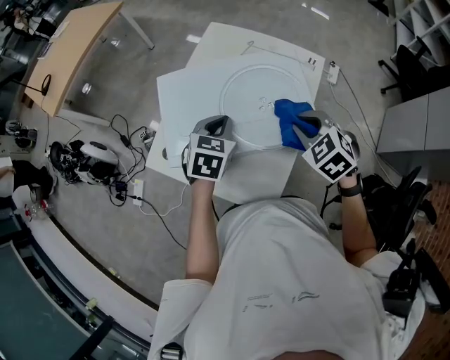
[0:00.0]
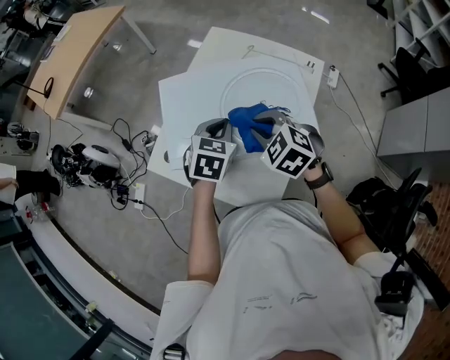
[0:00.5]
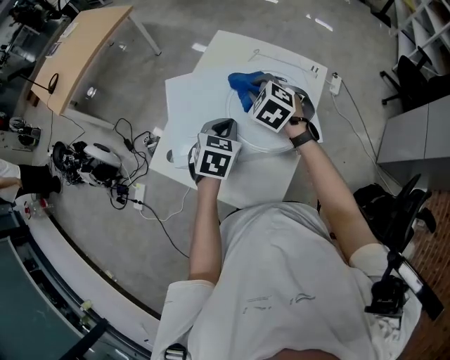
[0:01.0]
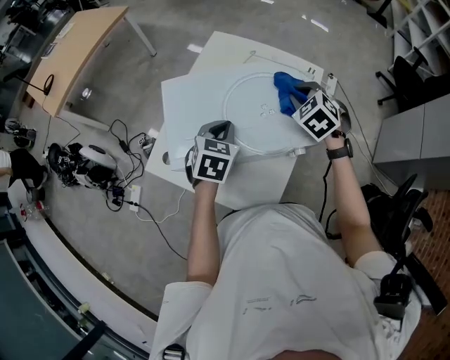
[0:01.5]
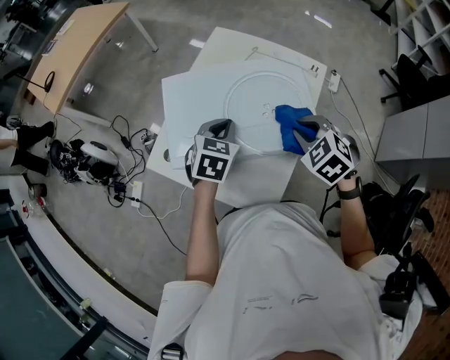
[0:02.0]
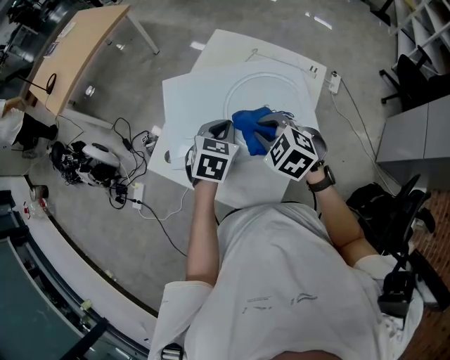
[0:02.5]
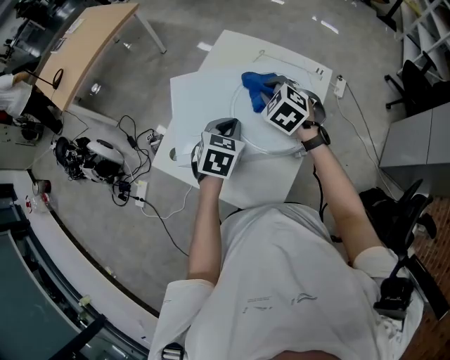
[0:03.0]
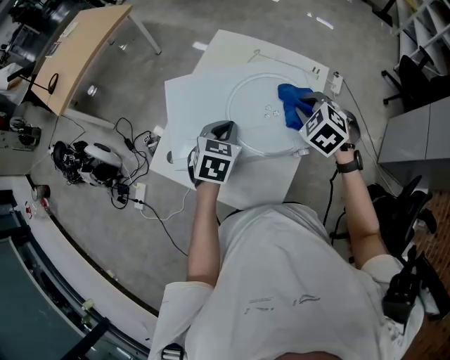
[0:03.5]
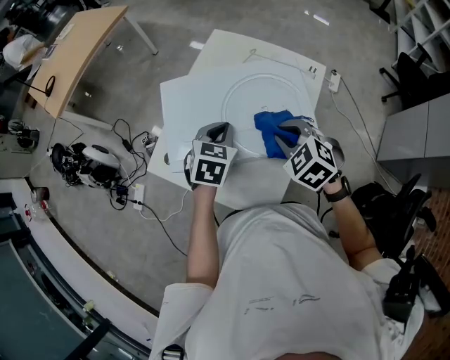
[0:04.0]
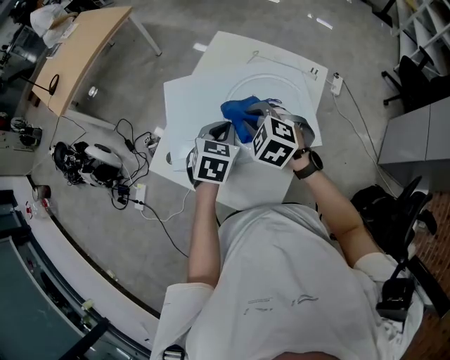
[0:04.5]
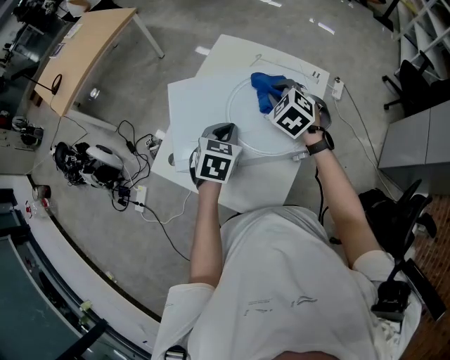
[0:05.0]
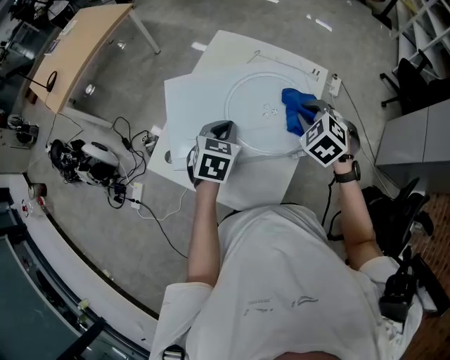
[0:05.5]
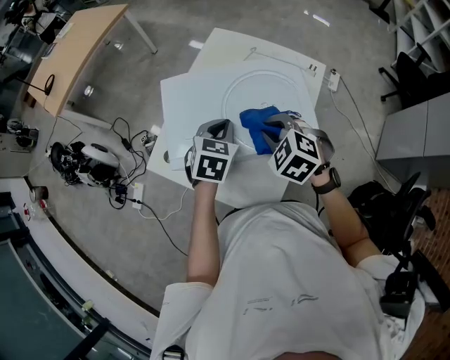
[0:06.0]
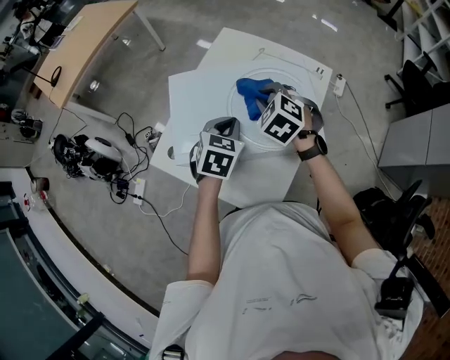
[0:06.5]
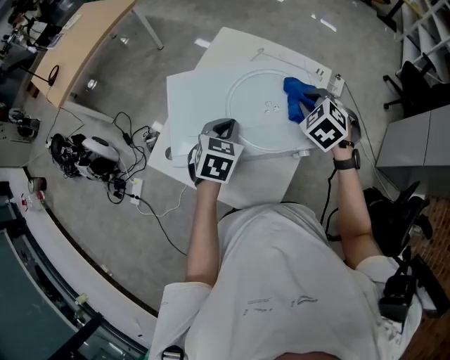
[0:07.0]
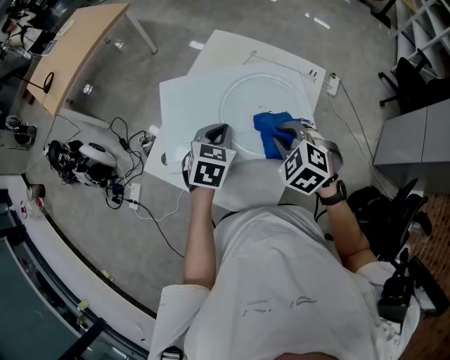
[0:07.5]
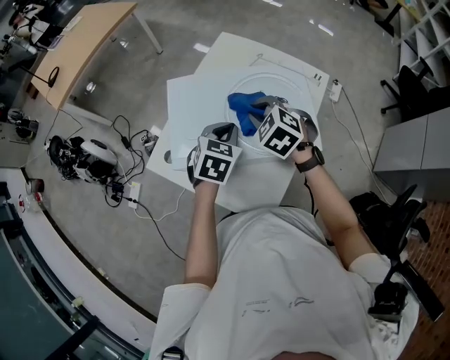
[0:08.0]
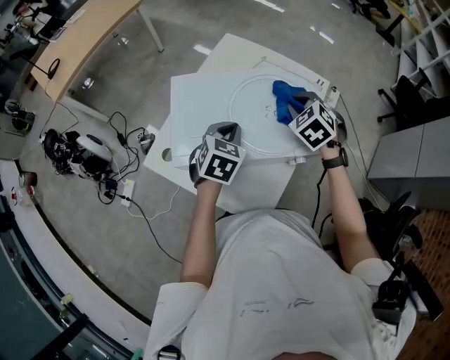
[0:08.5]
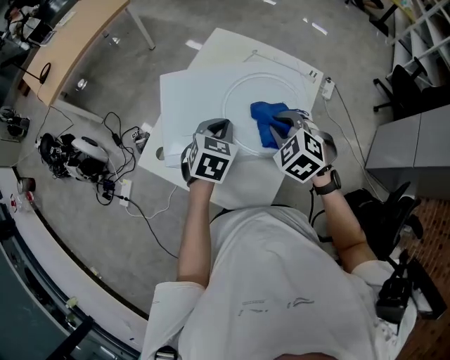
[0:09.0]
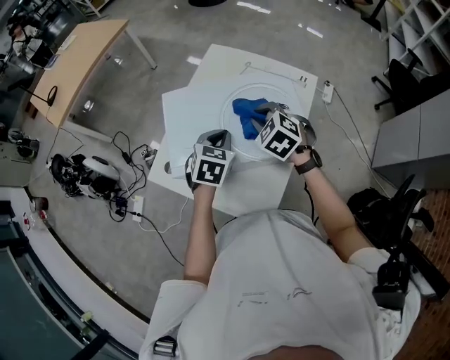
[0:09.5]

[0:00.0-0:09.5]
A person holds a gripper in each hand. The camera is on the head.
0:00.0 to 0:02.0: The right gripper goes to the left and returns, about 10 cm each way.
0:02.0 to 0:04.0: The right gripper travels forward and back again, roughly 10 cm each way.
0:04.0 to 0:05.5: The right gripper moves to the right and forward, about 10 cm.
0:05.5 to 0:07.5: The right gripper goes left and right, roughly 10 cm each way, reversing 2 times.
0:07.5 to 0:09.5: The right gripper moves forward and backward over some 10 cm, changing direction 2 times.

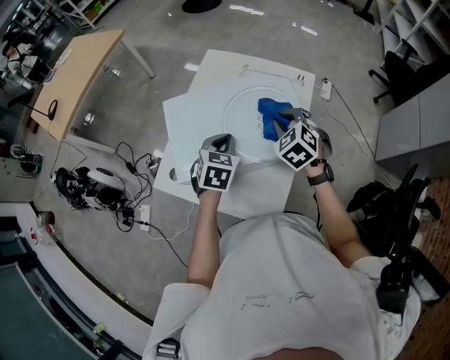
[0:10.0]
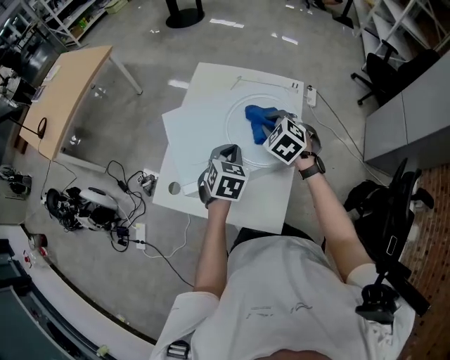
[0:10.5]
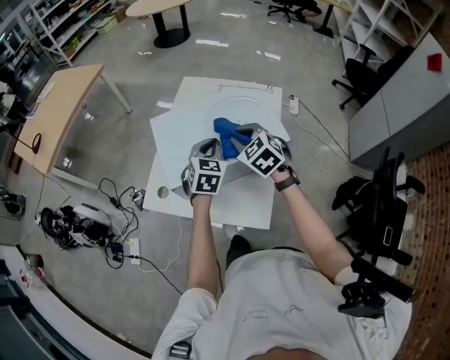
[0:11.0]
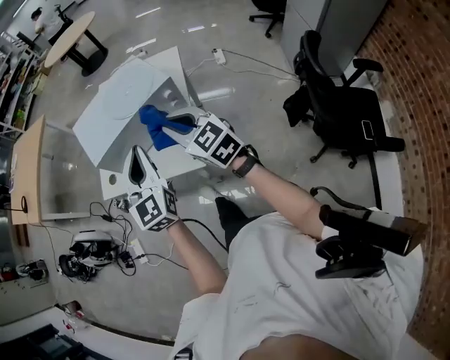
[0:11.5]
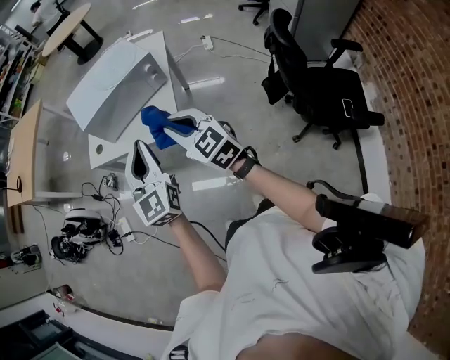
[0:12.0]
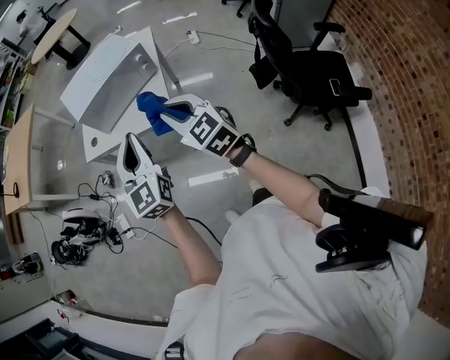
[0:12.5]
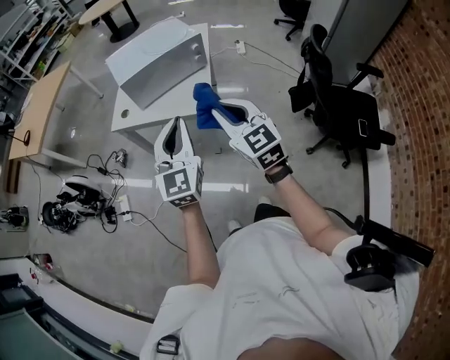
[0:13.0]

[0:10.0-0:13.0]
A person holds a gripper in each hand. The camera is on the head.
0:10.0 to 0:11.5: The left gripper shifts approximately 30 cm backward and upward, and points its fingers about 40 degrees further upward. Meanwhile the right gripper travels backward by approximately 30 cm, and tips its fingers upward by approximately 40 degrees.
0:11.5 to 0:13.0: The two grippers go about 25 cm backward.

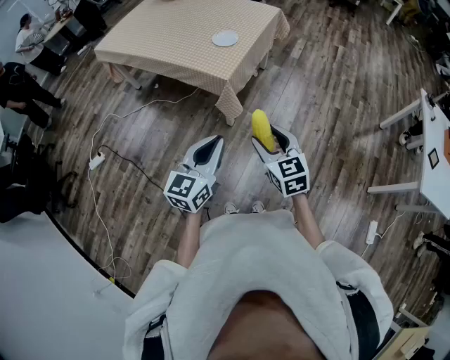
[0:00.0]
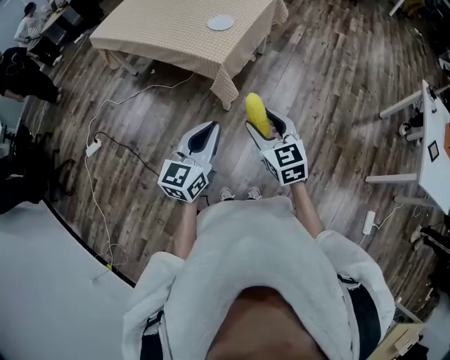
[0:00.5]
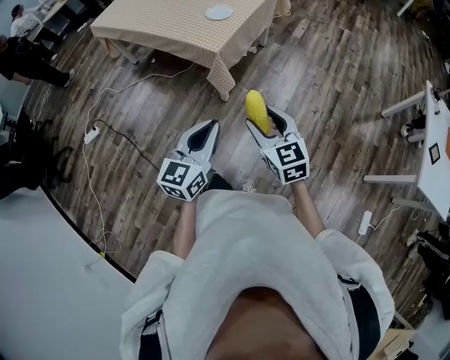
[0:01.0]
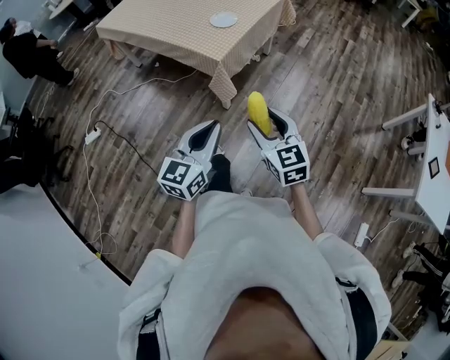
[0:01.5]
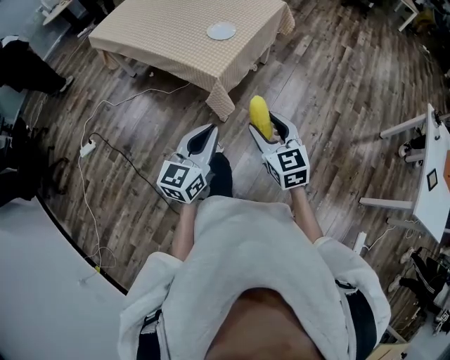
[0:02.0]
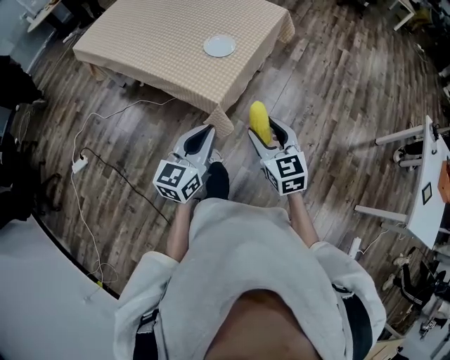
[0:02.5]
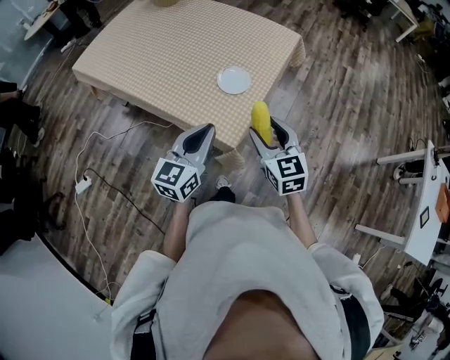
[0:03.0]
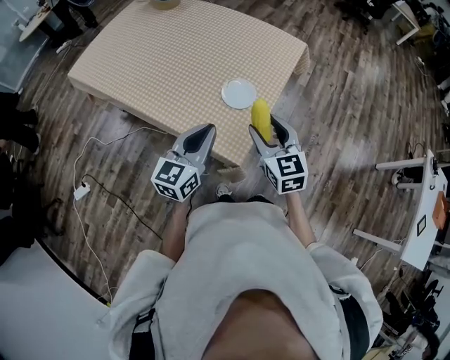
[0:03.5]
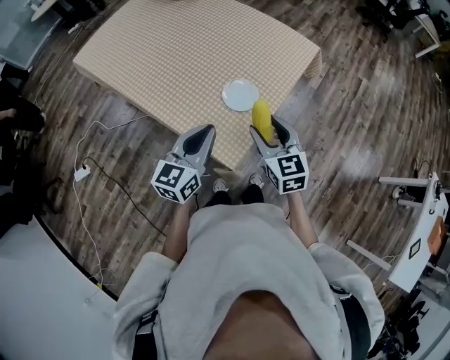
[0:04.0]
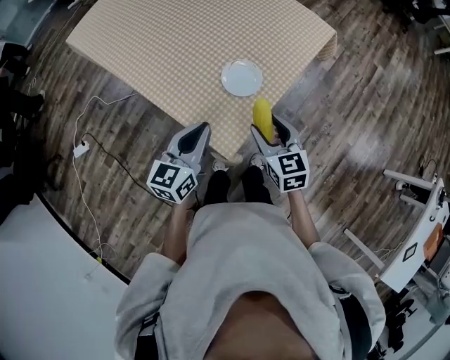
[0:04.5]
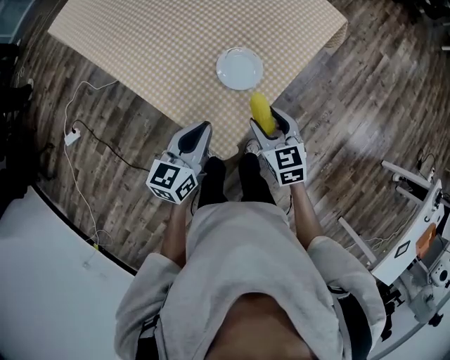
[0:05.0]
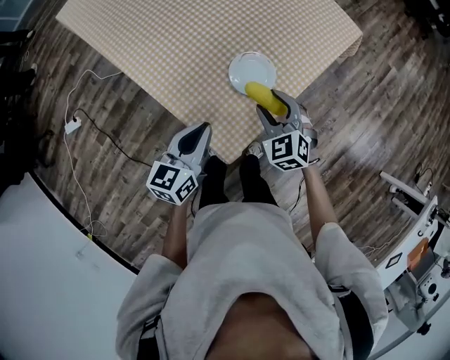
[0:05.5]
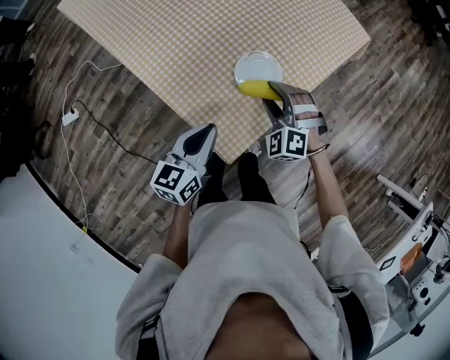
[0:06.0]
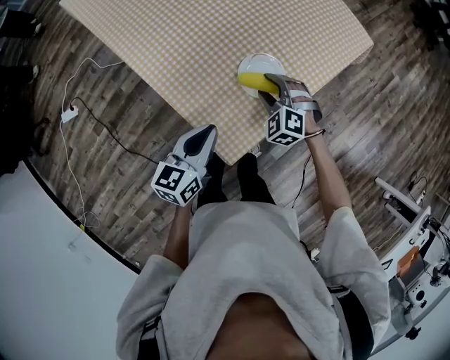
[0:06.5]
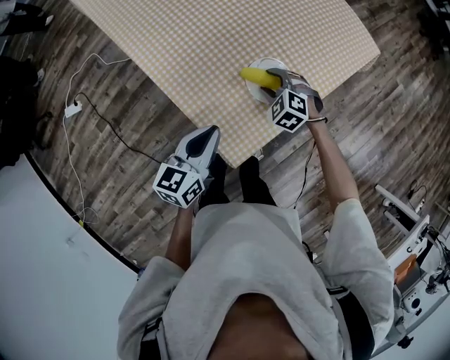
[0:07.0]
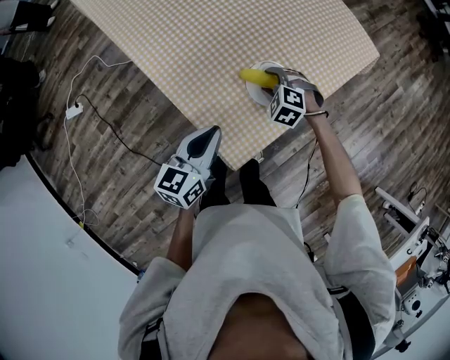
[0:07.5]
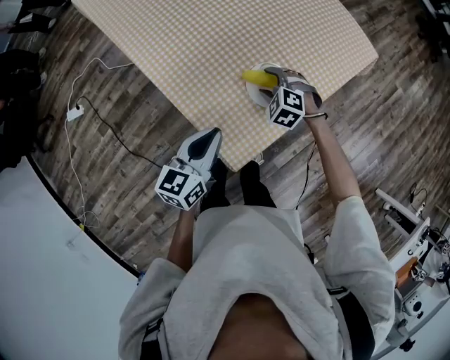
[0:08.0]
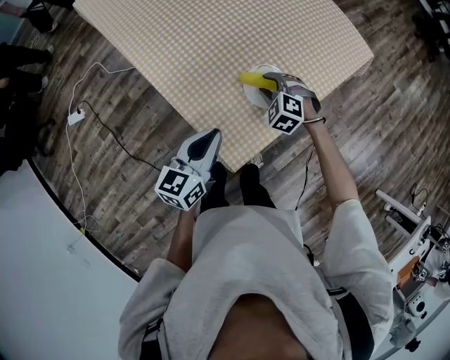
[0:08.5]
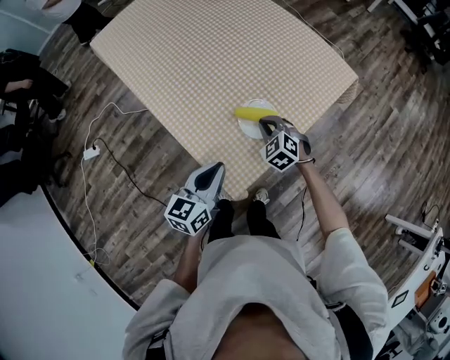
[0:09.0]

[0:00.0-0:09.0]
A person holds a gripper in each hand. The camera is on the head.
0:00.0 to 0:02.0: The left gripper is displaced forward by about 10 cm. Meanwhile the right gripper travels forward and to the right by about 10 cm.
0:02.0 to 0:04.5: The two grippers travel together, forward, roughly 50 cm.
0:04.5 to 0:07.0: The right gripper travels forward and downward by about 25 cm, and rolls counterclockwise, seen from behind, by roughly 60 degrees; the left gripper shifts about 10 cm downward.
0:07.0 to 0:09.0: The left gripper moves some 5 cm. The right gripper heads upward, covering about 5 cm, and closes up.

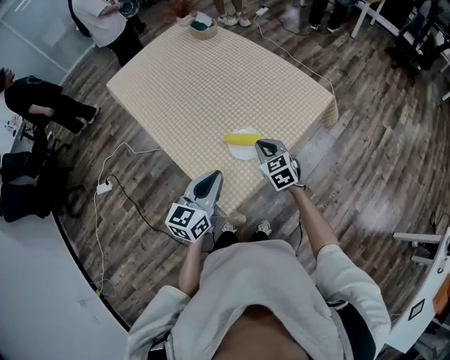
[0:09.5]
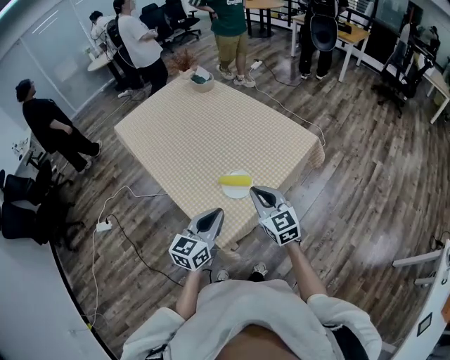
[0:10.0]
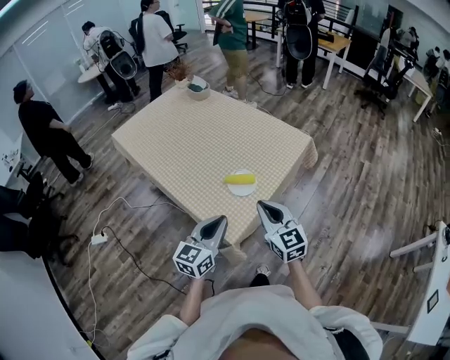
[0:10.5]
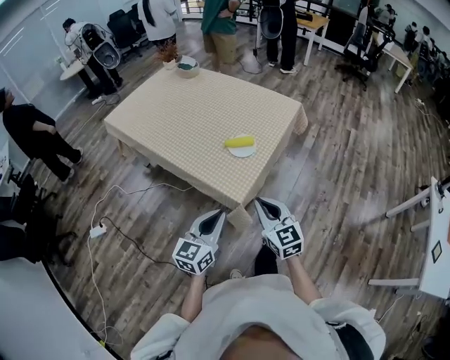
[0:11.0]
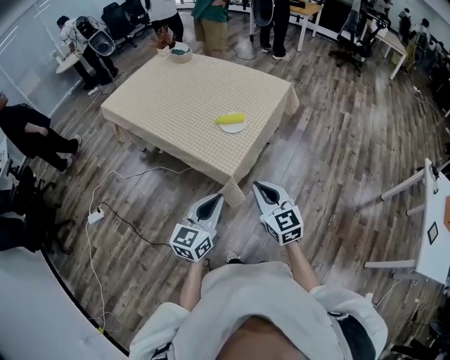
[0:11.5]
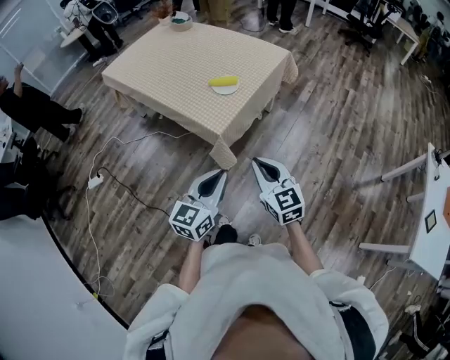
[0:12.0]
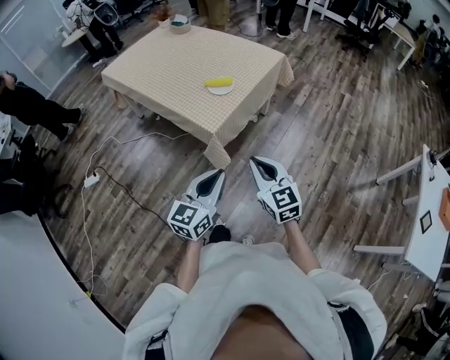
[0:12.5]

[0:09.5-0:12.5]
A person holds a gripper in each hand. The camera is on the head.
0:09.5 to 0:11.0: The two grippers go approximately 30 cm backward. The right gripper turns by about 30 degrees.
0:11.0 to 0:12.5: The two grippers go approximately 20 cm backward and to the right.

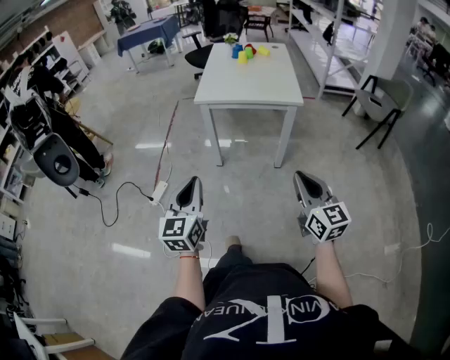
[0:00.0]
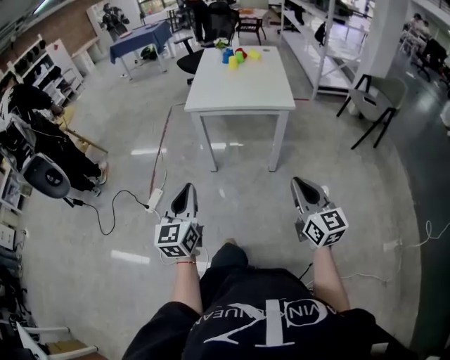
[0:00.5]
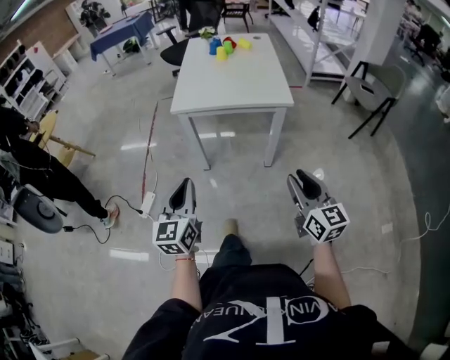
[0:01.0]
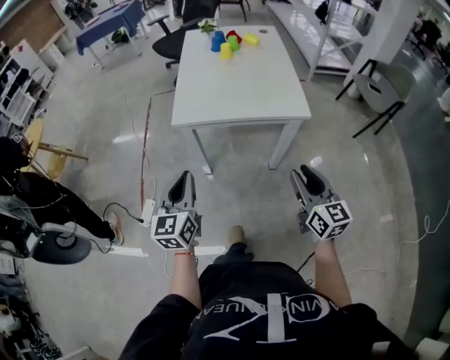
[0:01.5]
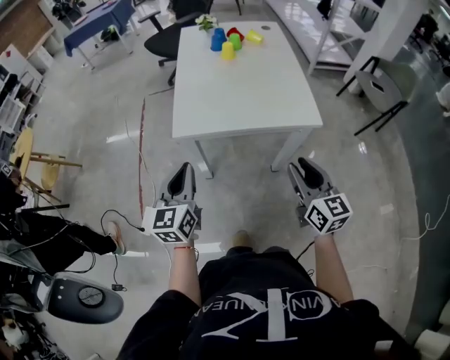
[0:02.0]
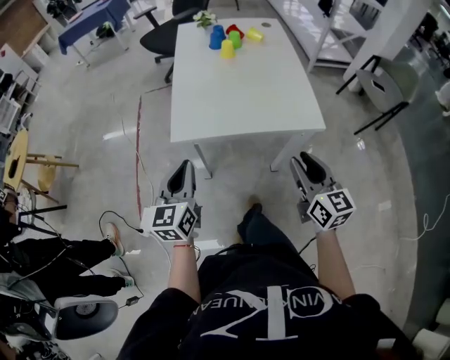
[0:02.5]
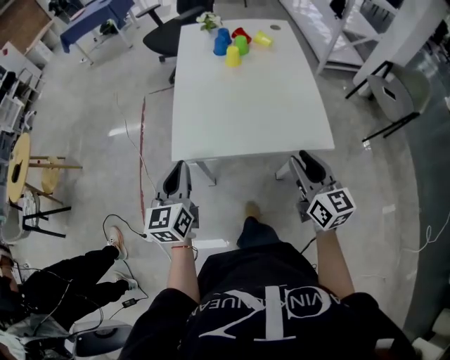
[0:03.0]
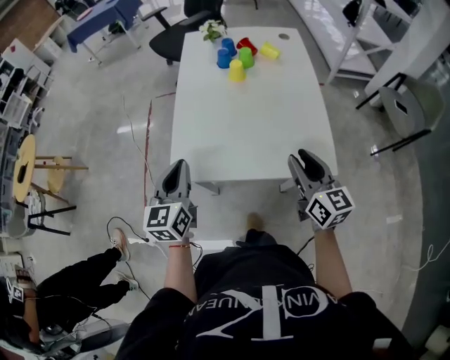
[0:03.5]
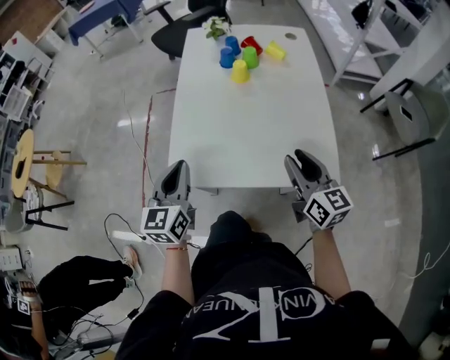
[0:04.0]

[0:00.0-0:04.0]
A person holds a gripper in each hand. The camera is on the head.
0:00.0 to 0:02.0: The two grippers go about 40 cm forward. The right gripper opens.
0:02.0 to 0:04.0: Both grippers travel together forward, approximately 25 cm.
